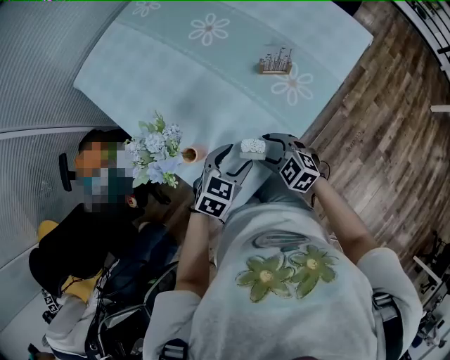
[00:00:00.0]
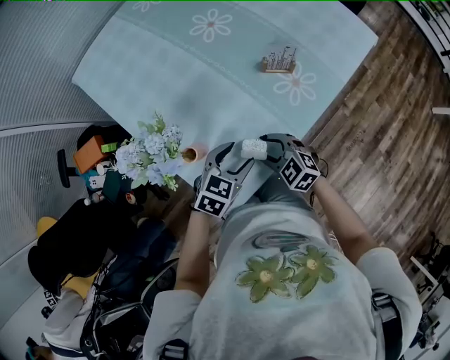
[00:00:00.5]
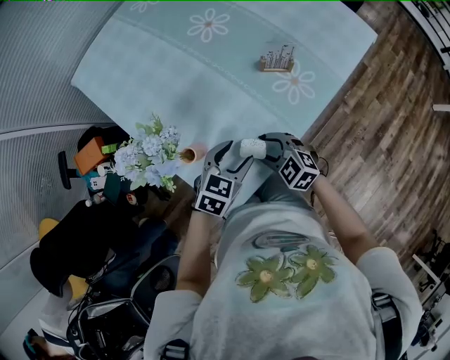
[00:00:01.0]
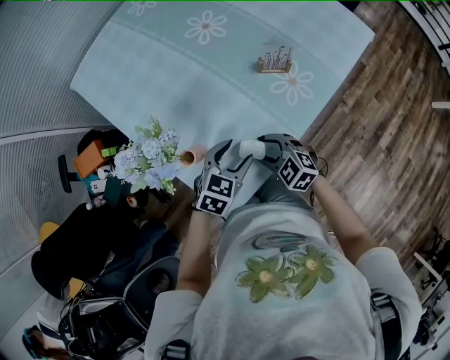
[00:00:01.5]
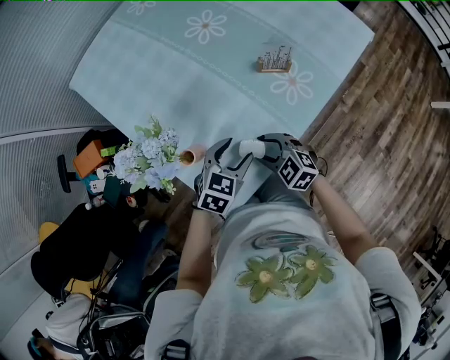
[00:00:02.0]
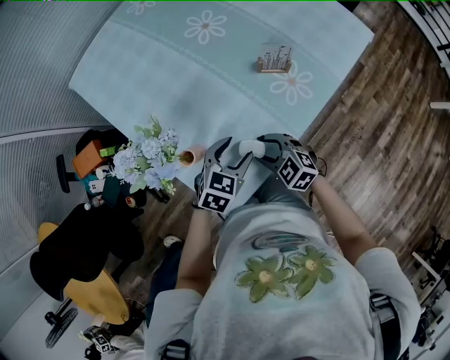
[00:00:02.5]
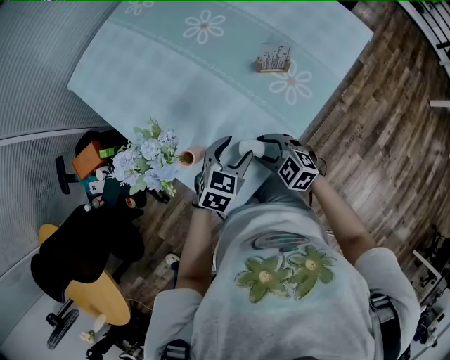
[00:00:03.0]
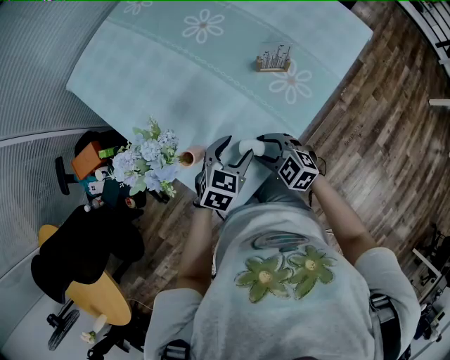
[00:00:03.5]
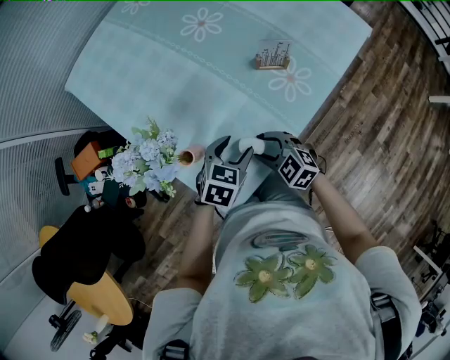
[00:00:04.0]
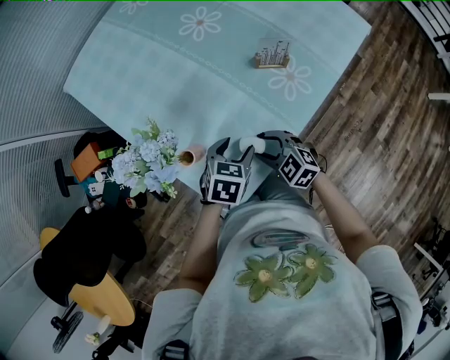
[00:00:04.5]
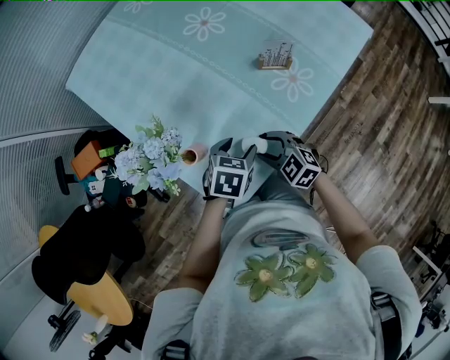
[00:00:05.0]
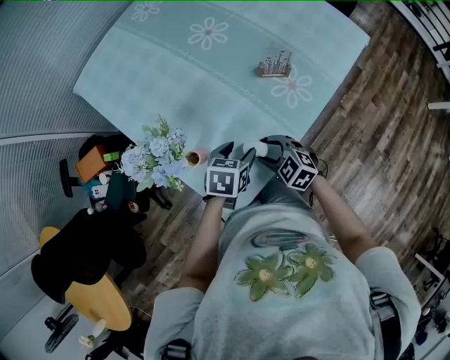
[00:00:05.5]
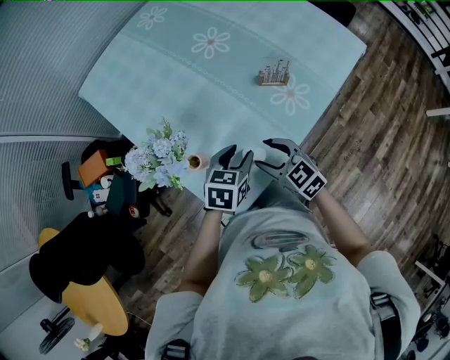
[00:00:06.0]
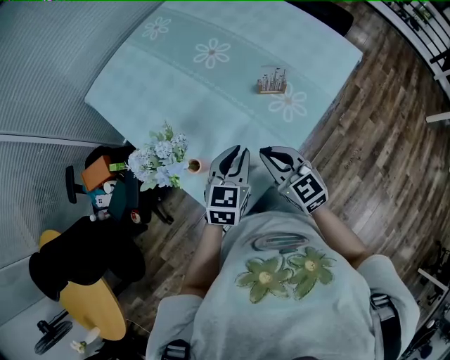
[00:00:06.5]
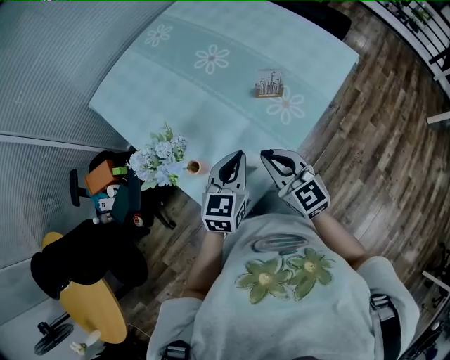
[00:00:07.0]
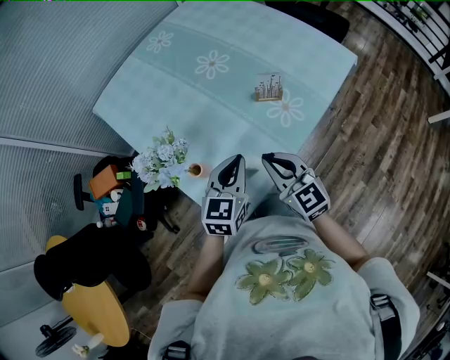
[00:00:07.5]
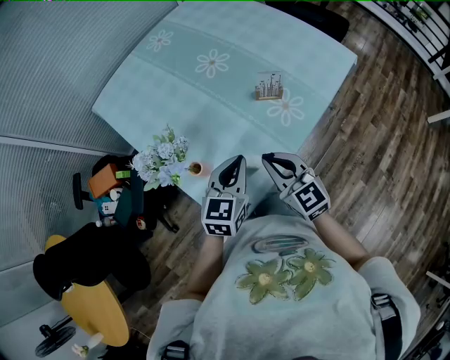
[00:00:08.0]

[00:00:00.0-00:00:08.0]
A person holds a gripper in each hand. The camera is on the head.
00:00:00.0 to 00:00:04.0: The grippers move only a little.
00:00:04.0 to 00:00:06.0: The right gripper moves upward, some 5 cm.
00:00:06.0 to 00:00:08.0: Both grippers travel together upward, roughly 10 cm. The left gripper rotates roughly 20 degrees, and closes its fingers; the right gripper turns by some 20 degrees, and closes.

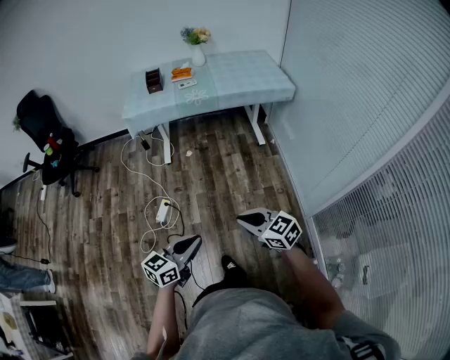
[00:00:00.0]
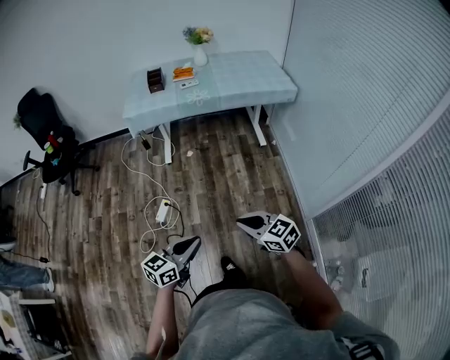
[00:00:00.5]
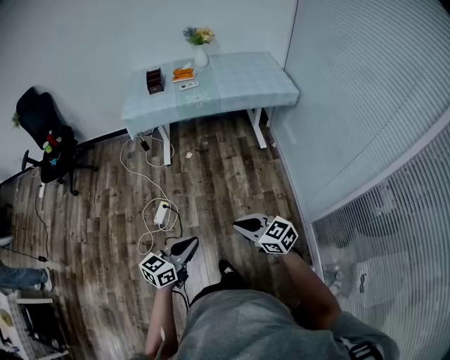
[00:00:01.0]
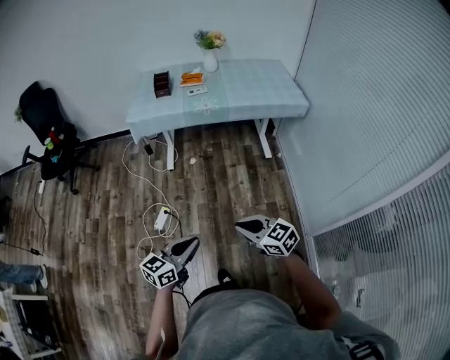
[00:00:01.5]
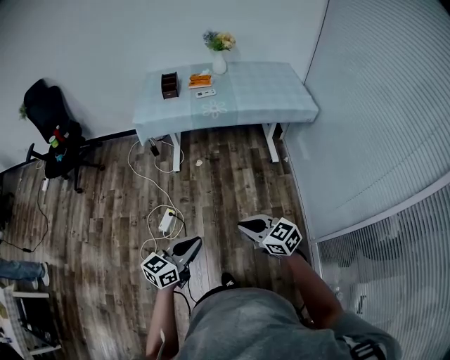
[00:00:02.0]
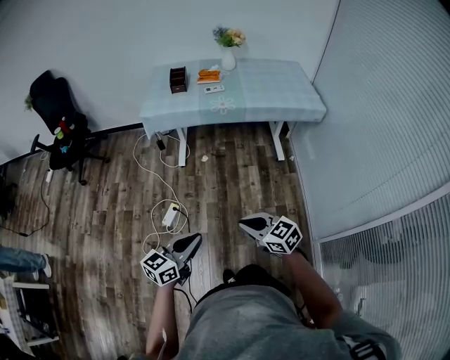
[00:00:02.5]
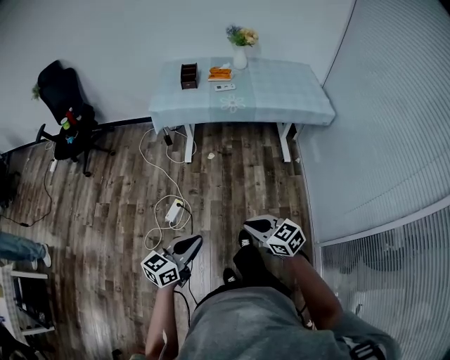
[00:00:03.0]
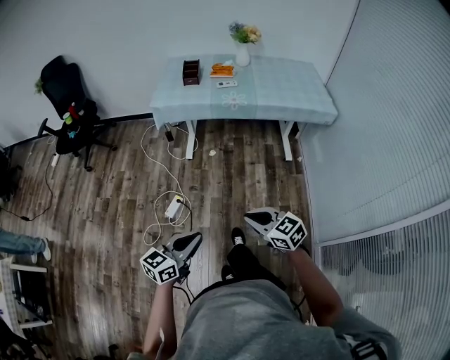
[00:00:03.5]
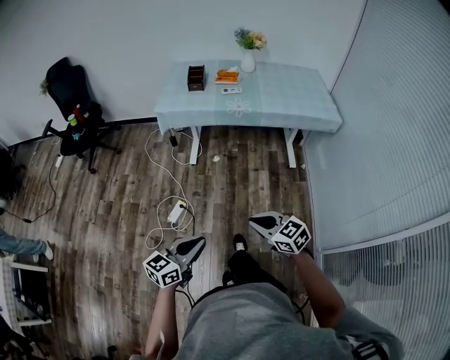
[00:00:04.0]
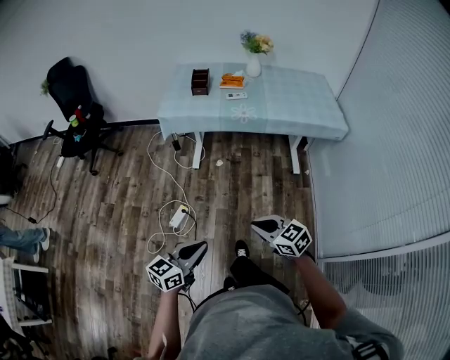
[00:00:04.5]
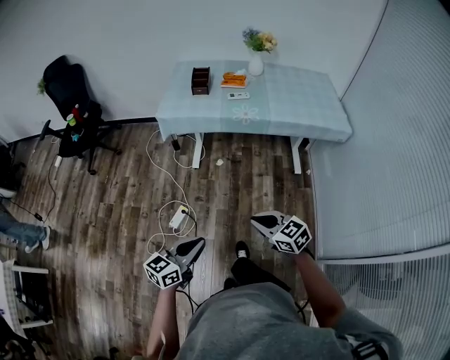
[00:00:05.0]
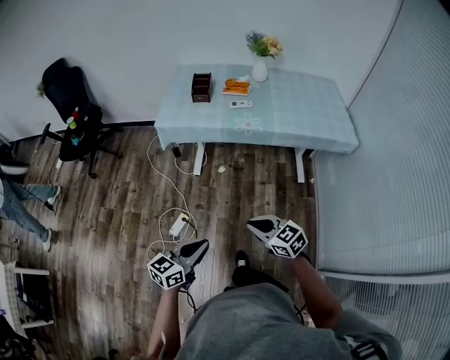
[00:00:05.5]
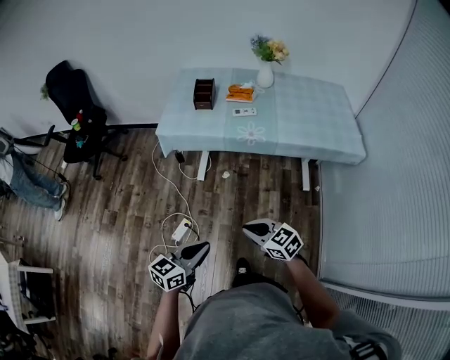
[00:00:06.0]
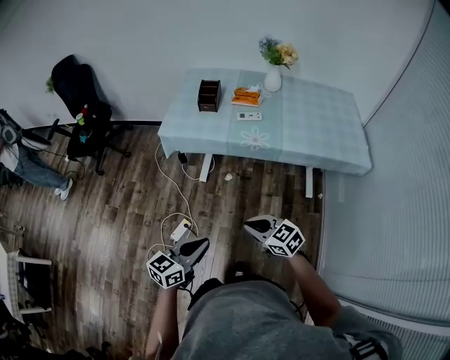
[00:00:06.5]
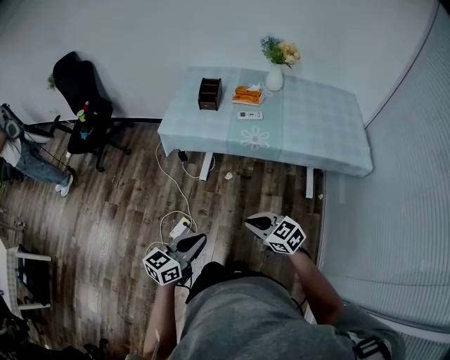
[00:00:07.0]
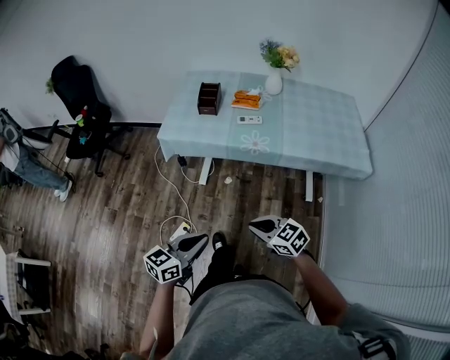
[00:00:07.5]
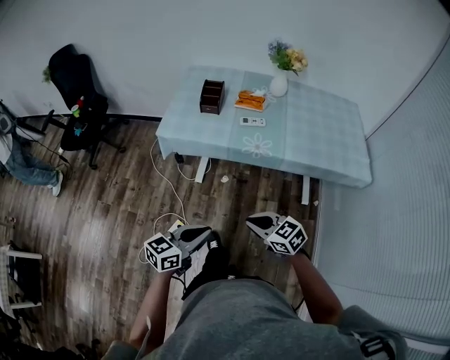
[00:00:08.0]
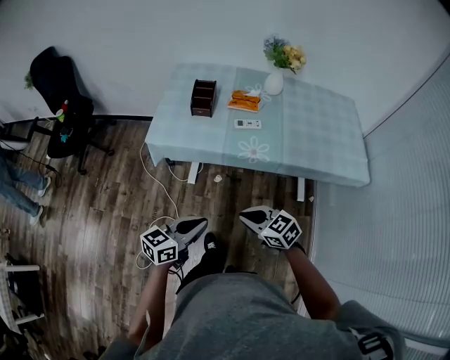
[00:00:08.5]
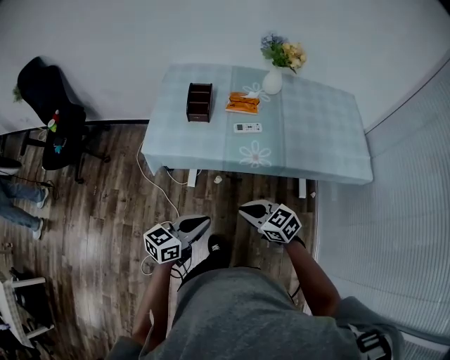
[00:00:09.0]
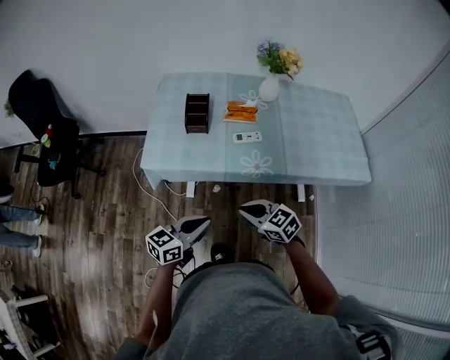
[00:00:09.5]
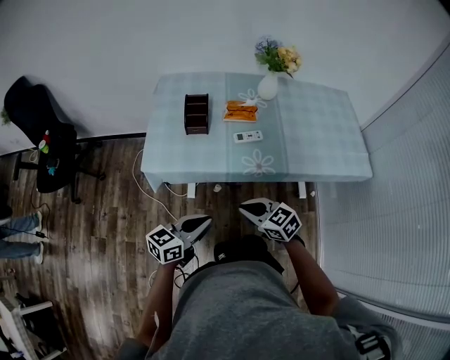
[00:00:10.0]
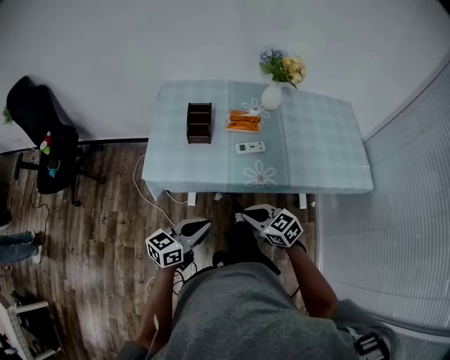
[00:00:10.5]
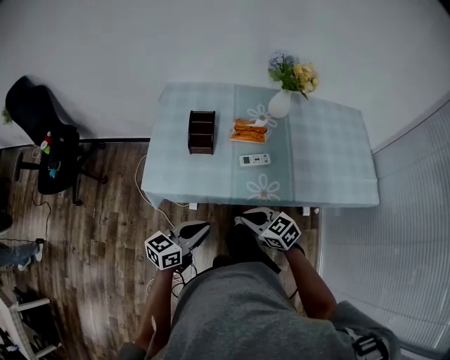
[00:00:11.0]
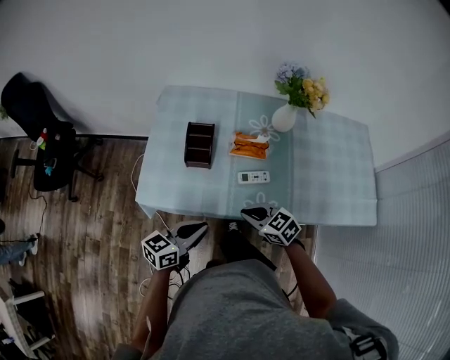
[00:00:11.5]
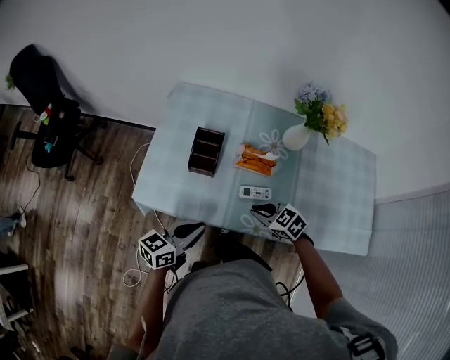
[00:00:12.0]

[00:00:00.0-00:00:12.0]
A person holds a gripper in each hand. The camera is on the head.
00:00:00.0 to 00:00:02.0: The two grippers go roughly 10 cm forward.
00:00:02.0 to 00:00:04.0: There are only small adjustments of the grippers.
00:00:04.0 to 00:00:06.0: The two grippers go approximately 20 cm forward.
00:00:06.0 to 00:00:08.0: The two grippers go some 10 cm forward.
00:00:08.0 to 00:00:10.0: The grippers both shift forward by some 20 cm.
00:00:10.0 to 00:00:12.0: Both grippers travel together forward, some 20 cm. The right gripper changes its angle by roughly 20 degrees.

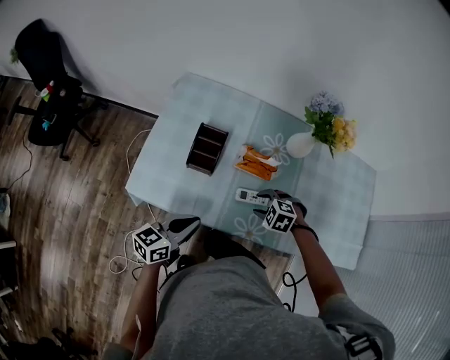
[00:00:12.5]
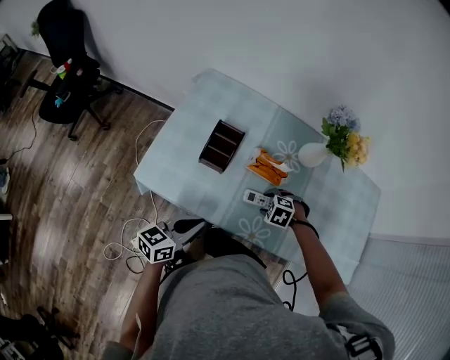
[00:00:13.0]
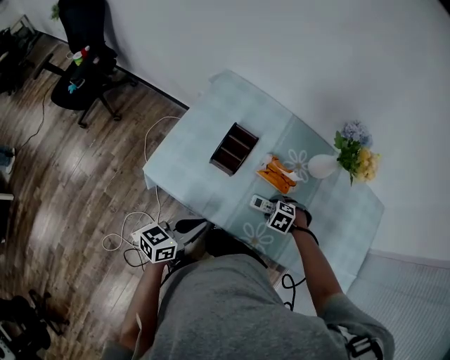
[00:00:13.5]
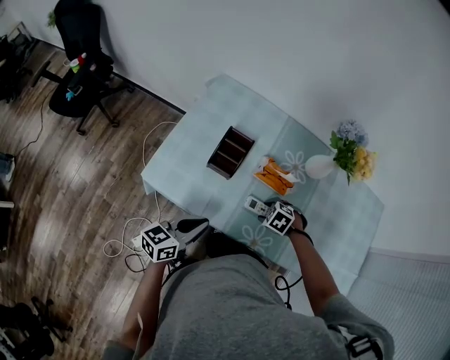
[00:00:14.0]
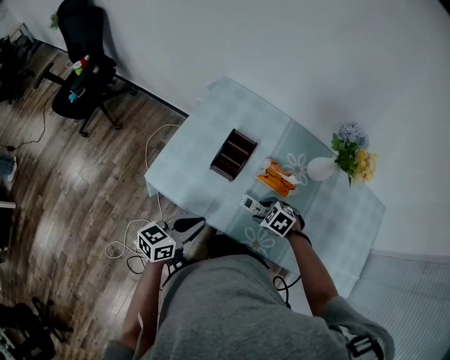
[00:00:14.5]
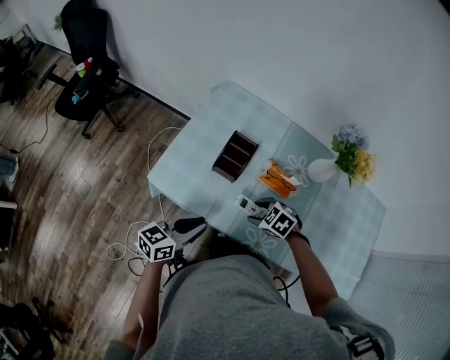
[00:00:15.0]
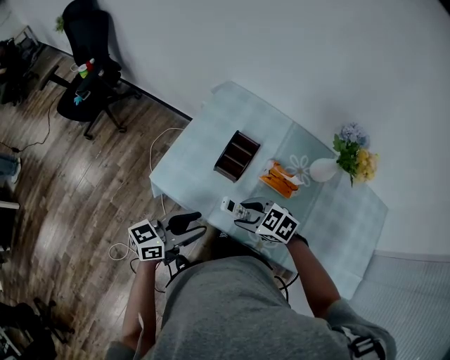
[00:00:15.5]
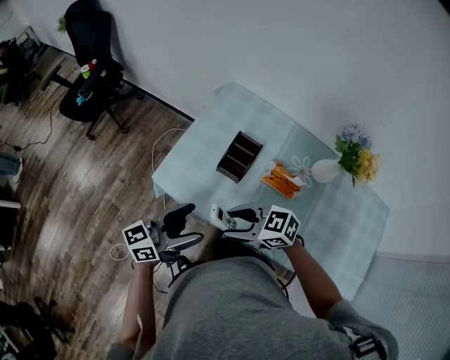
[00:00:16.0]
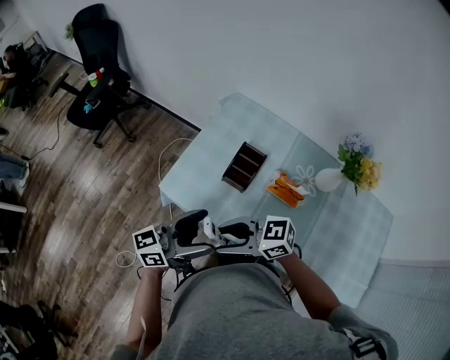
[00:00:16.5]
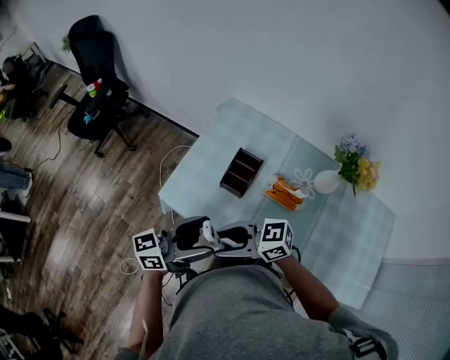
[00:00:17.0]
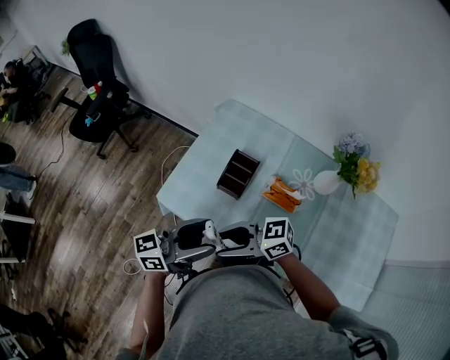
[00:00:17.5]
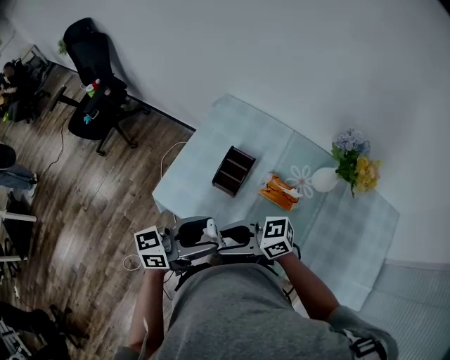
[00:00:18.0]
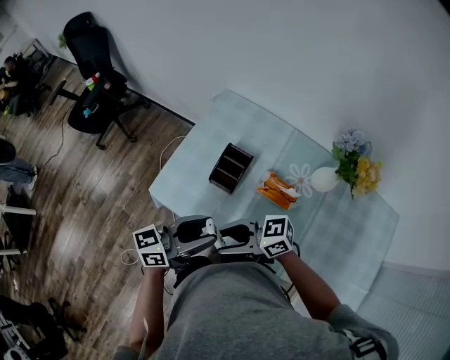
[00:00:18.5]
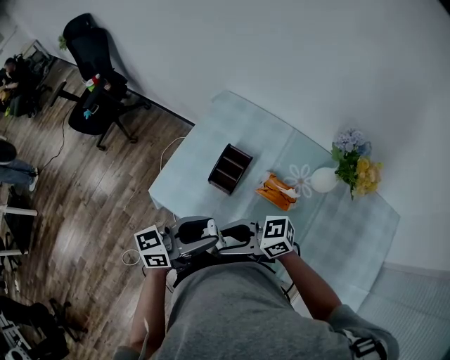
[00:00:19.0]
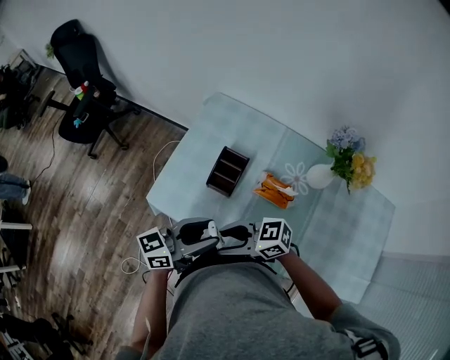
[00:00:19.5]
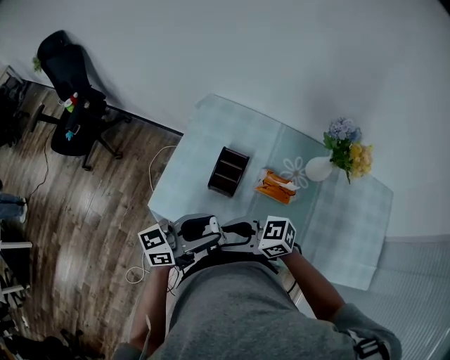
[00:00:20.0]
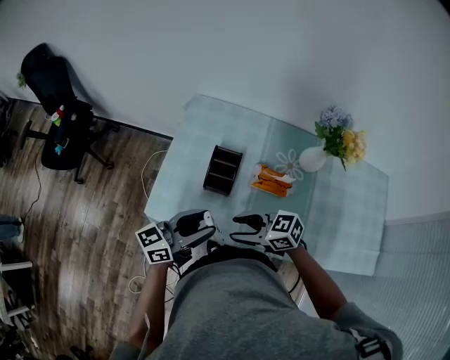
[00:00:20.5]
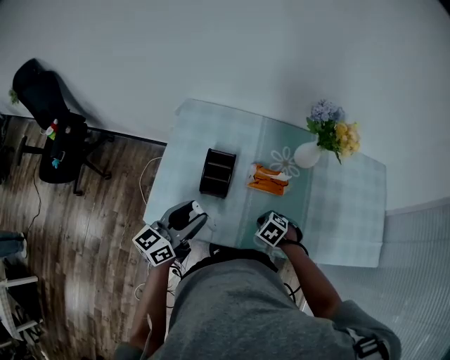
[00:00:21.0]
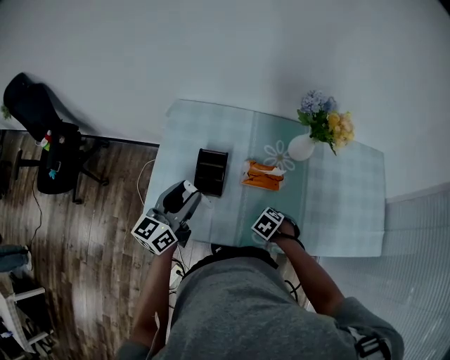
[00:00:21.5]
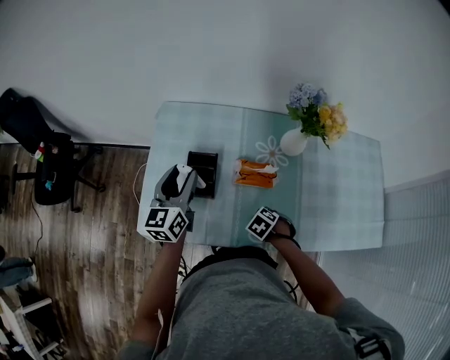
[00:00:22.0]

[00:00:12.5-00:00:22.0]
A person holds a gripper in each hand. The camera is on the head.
00:00:12.5 to 00:00:14.5: The right gripper shifts by some 5 cm.
00:00:14.5 to 00:00:16.5: The right gripper is displaced upward by approximately 20 cm, and points its fingers some 60 degrees further upward. Meanwhile the left gripper travels upward by about 15 cm, swivels some 30 degrees, and opens up.
00:00:16.5 to 00:00:18.0: The right gripper moves about 5 cm. The left gripper moves approximately 5 cm.
00:00:18.0 to 00:00:20.0: The grippers move only a little.
00:00:20.0 to 00:00:22.0: The right gripper shifts about 20 cm downward, tilts its fingers approximately 70 degrees downward, and closes up. The left gripper moves about 20 cm, and changes its angle by some 40 degrees.
